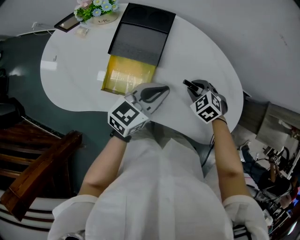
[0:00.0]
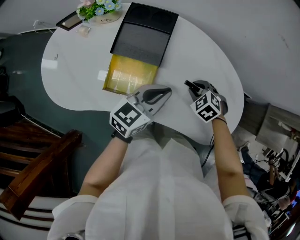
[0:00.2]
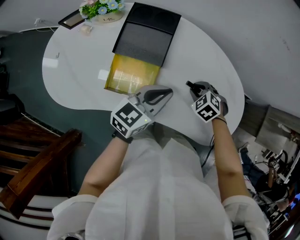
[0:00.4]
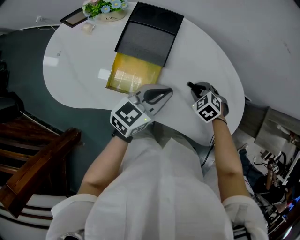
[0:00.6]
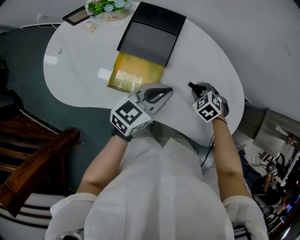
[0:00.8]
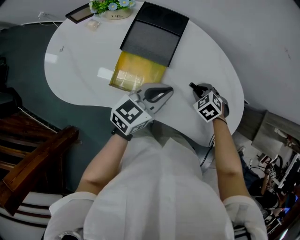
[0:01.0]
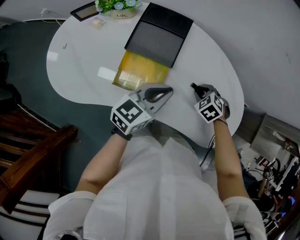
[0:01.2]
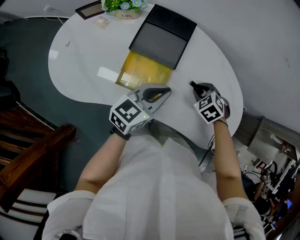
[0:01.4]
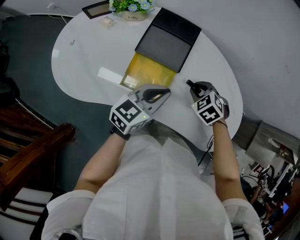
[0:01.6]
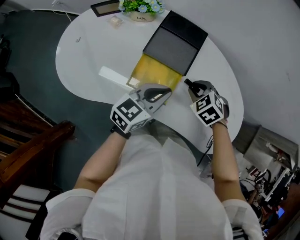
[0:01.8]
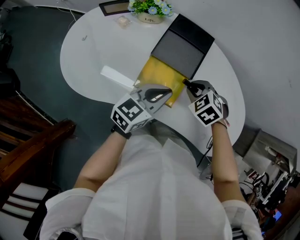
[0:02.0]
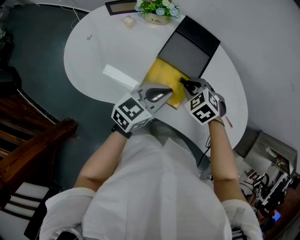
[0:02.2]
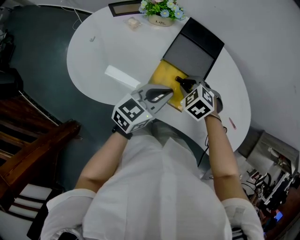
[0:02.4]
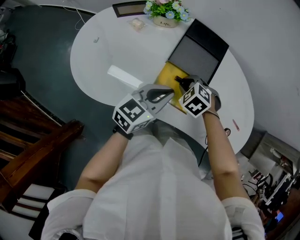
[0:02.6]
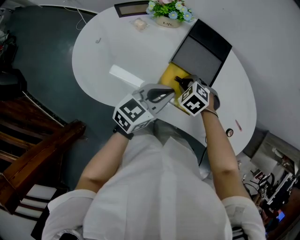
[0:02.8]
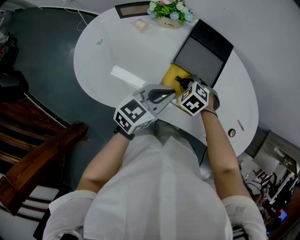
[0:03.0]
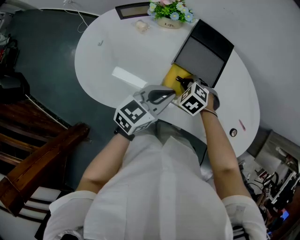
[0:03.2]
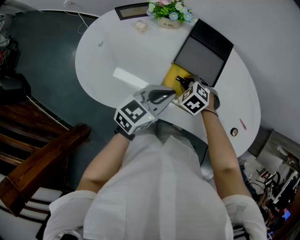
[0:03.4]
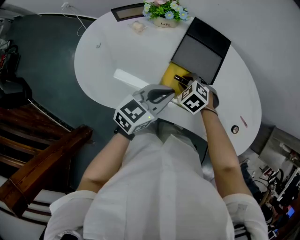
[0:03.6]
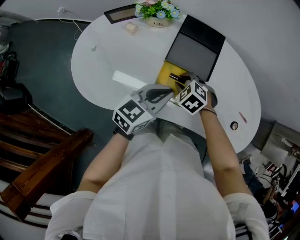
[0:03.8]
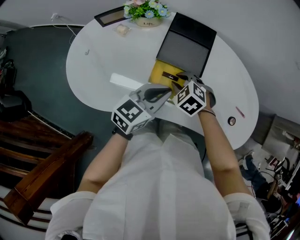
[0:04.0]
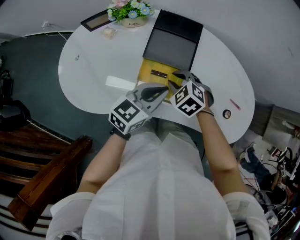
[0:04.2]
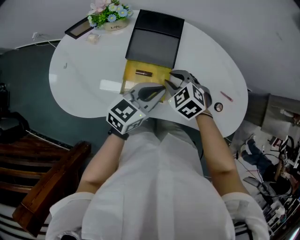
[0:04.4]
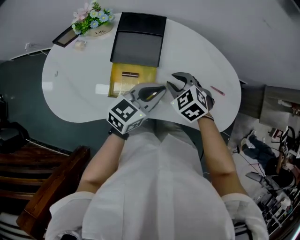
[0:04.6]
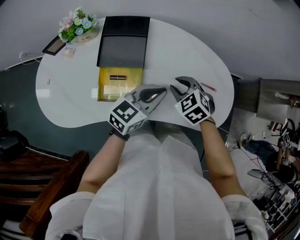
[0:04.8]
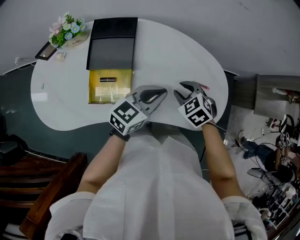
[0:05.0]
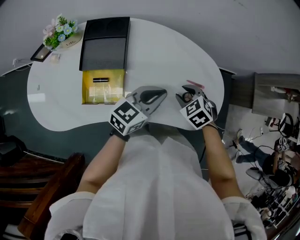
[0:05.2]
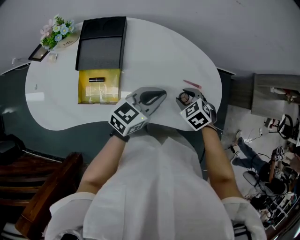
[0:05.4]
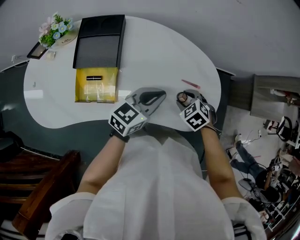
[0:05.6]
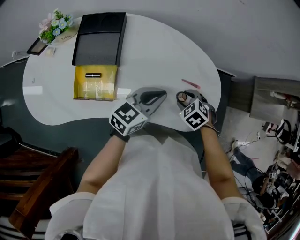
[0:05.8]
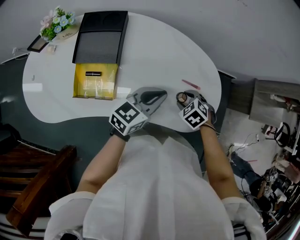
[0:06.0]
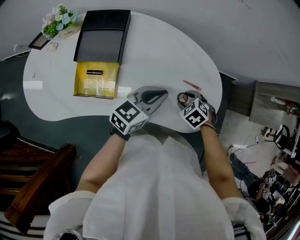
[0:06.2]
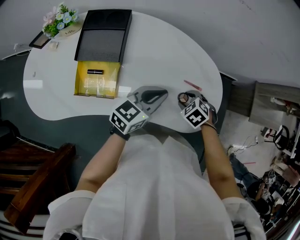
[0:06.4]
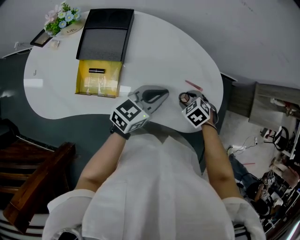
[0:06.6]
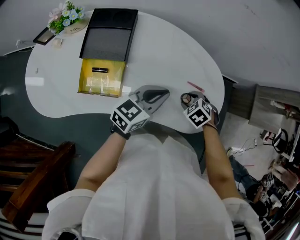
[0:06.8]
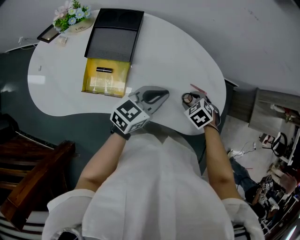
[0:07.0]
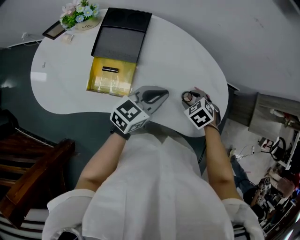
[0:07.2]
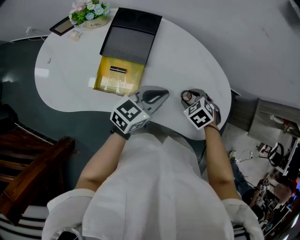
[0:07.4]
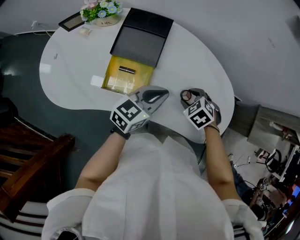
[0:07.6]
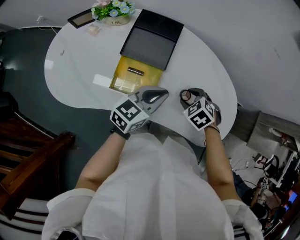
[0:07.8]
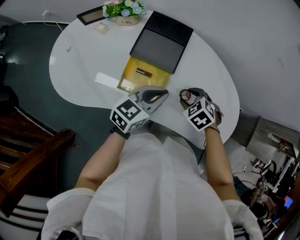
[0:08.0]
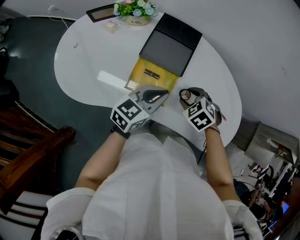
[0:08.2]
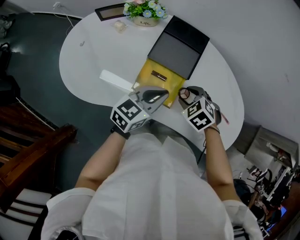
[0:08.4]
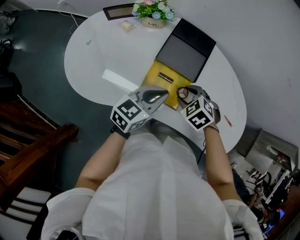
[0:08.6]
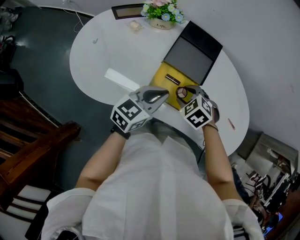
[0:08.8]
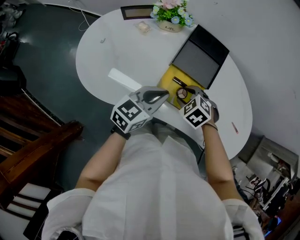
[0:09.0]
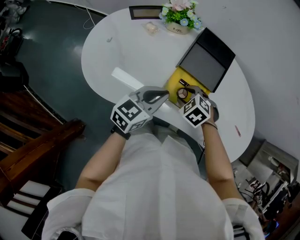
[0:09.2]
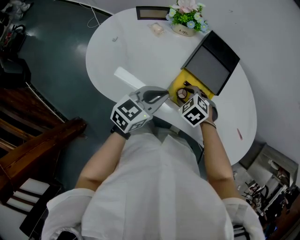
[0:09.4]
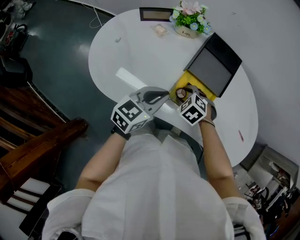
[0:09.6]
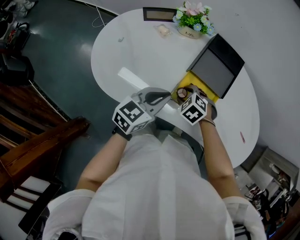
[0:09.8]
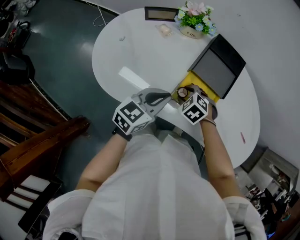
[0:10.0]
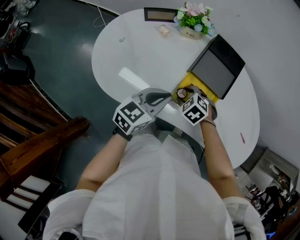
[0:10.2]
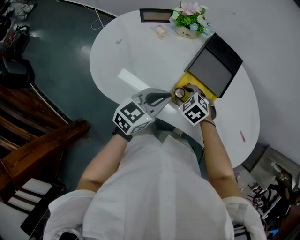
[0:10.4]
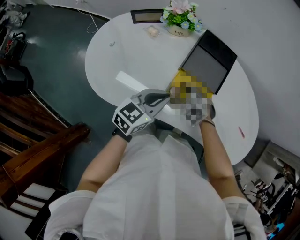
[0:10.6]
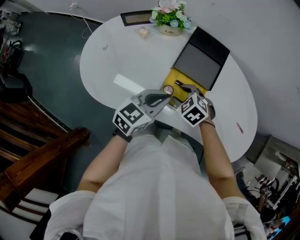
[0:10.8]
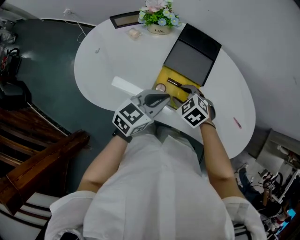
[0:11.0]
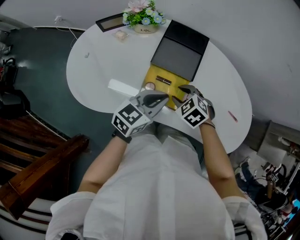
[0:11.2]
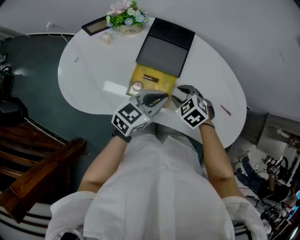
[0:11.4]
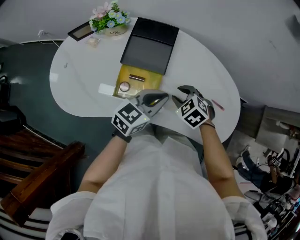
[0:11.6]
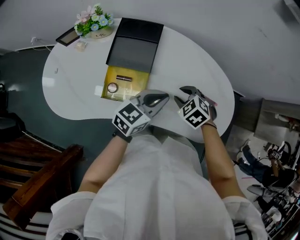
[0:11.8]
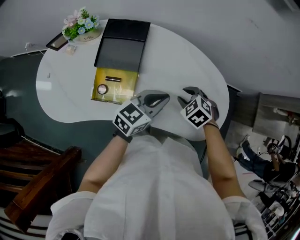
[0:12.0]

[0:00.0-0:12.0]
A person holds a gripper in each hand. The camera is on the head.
0:00.0 to 0:01.6: The two grippers go some 5 cm to the left.
0:01.6 to 0:03.0: The right gripper travels to the left by approximately 20 cm, while the left gripper heads to the left, covering some 15 cm.
0:03.0 to 0:04.4: The left gripper goes some 10 cm to the right, while the right gripper travels to the right and upward by about 15 cm, and rotates about 20 degrees.
0:04.4 to 0:06.0: The grippers both shift to the right by about 25 cm. The right gripper swivels approximately 20 degrees, and opens its fingers.
0:06.0 to 0:07.6: The right gripper shifts by approximately 15 cm. The left gripper shifts by about 15 cm.
0:07.6 to 0:09.0: Both grippers travel together to the left, some 25 cm.
0:09.0 to 0:10.4: Both grippers travel together to the left, about 5 cm.
0:10.4 to 0:12.0: The right gripper changes place by some 35 cm, and rotates approximately 20 degrees. The left gripper ends up about 35 cm from where it was, and turns by roughly 20 degrees.

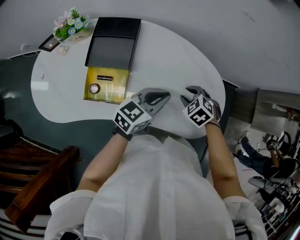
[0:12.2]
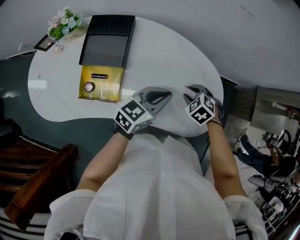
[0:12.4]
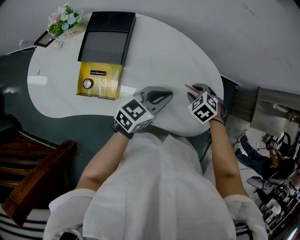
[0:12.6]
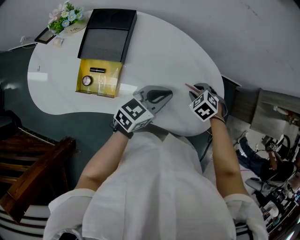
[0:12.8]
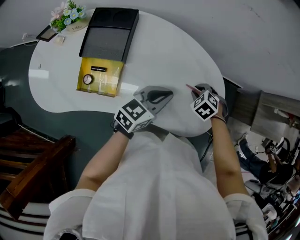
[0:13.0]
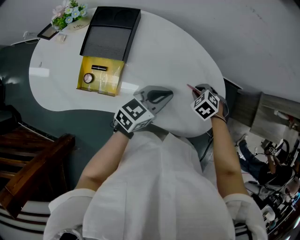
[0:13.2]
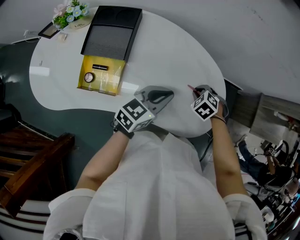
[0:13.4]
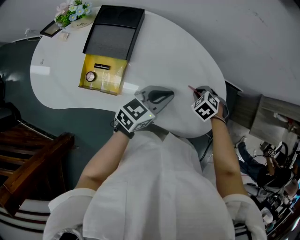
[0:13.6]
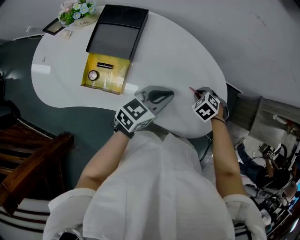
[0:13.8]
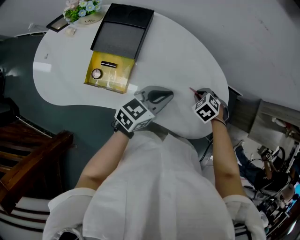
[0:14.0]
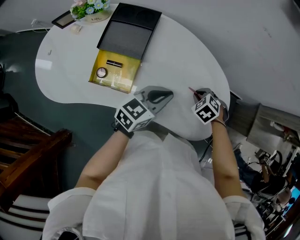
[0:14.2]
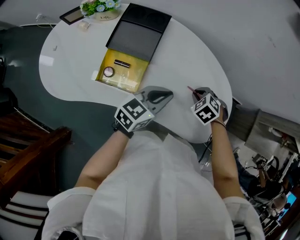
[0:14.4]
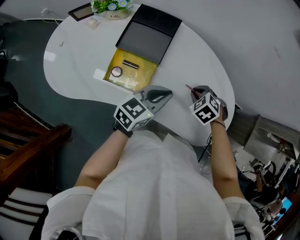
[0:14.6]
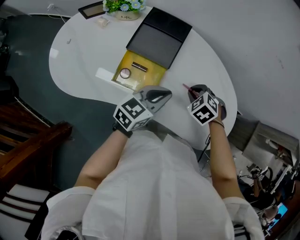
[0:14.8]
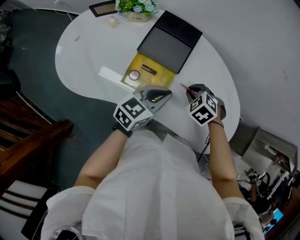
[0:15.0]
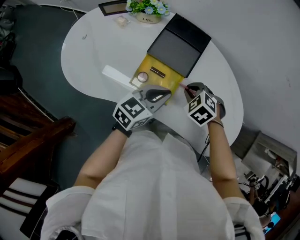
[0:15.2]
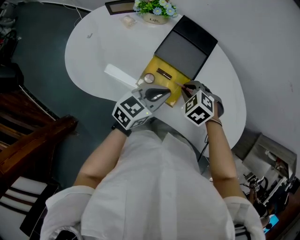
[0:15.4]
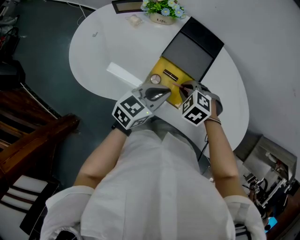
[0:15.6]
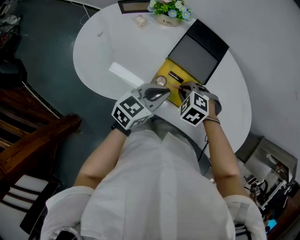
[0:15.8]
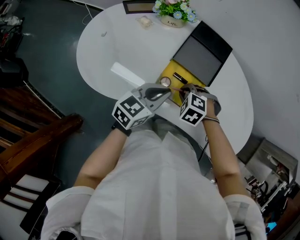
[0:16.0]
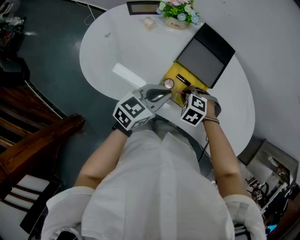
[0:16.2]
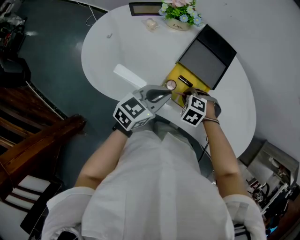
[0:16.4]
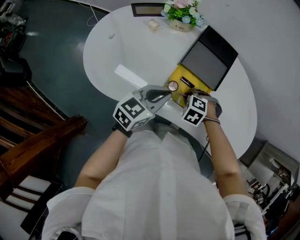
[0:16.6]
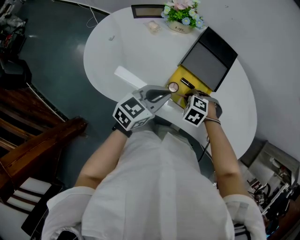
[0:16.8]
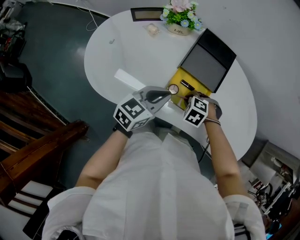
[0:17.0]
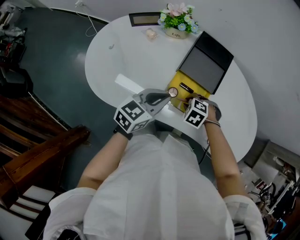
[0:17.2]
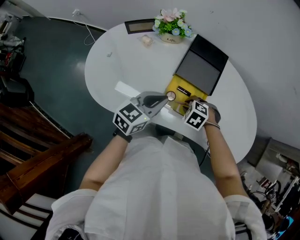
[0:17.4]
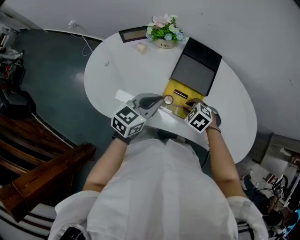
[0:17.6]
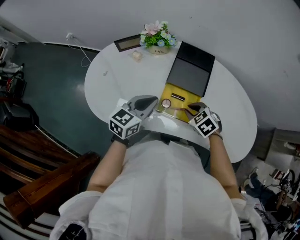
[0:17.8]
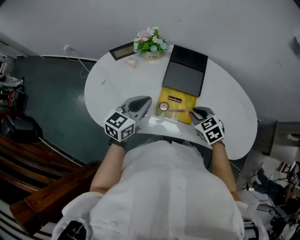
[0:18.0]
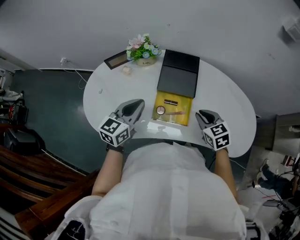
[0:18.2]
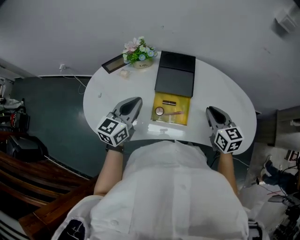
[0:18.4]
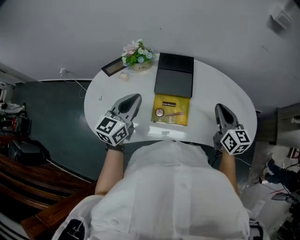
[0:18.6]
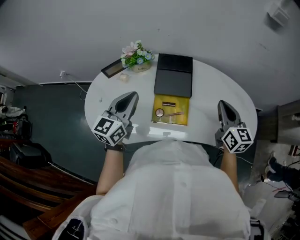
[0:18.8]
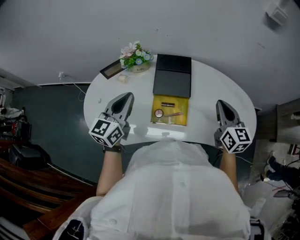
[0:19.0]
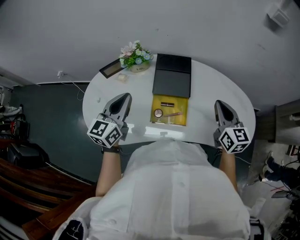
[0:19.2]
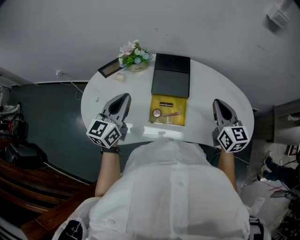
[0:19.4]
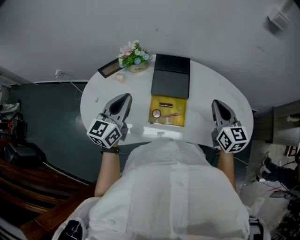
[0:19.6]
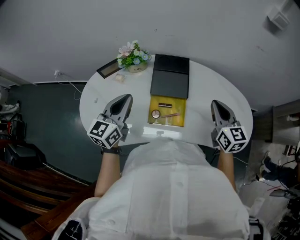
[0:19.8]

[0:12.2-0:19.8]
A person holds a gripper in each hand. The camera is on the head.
0:12.2 to 0:13.8: The right gripper ends up about 10 cm from where it was, and closes its fingers.
0:13.8 to 0:15.2: The left gripper shifts by approximately 25 cm. Meanwhile the right gripper moves approximately 30 cm, and turns by approximately 20 degrees.
0:15.2 to 0:16.8: The right gripper changes place by approximately 15 cm. Meanwhile the left gripper moves about 15 cm.
0:16.8 to 0:18.2: The left gripper is displaced upward by roughly 5 cm; the right gripper shifts approximately 15 cm upward, and tilts its fingers approximately 40 degrees upward.
0:18.2 to 0:19.8: The left gripper travels upward by roughly 5 cm. The right gripper heads upward and to the right, covering approximately 15 cm, and rotates some 30 degrees.

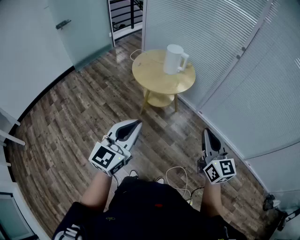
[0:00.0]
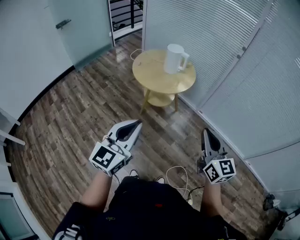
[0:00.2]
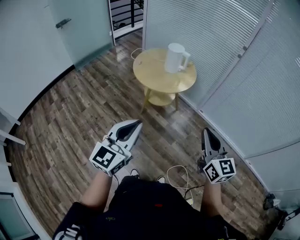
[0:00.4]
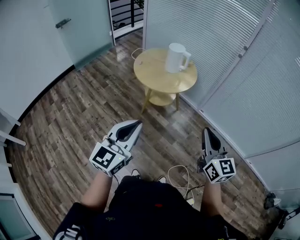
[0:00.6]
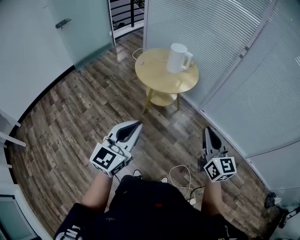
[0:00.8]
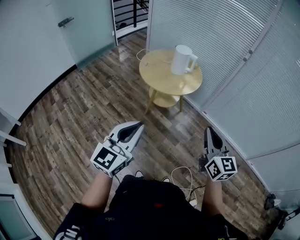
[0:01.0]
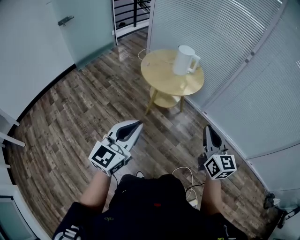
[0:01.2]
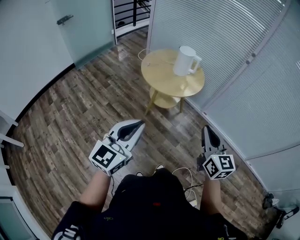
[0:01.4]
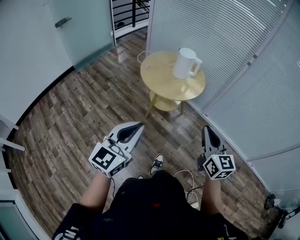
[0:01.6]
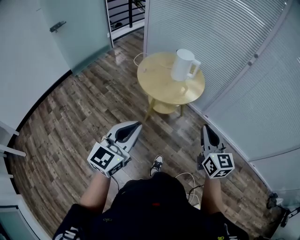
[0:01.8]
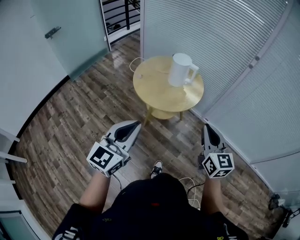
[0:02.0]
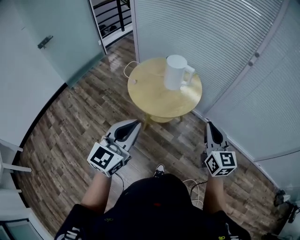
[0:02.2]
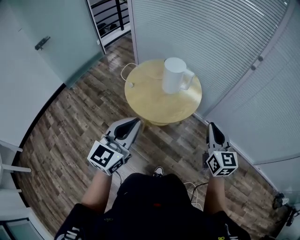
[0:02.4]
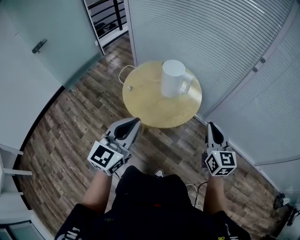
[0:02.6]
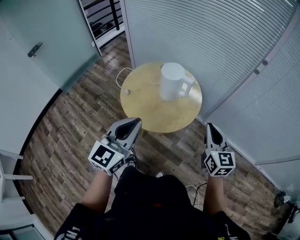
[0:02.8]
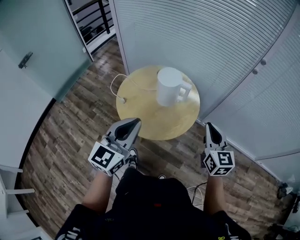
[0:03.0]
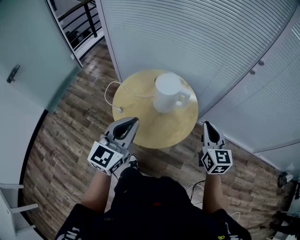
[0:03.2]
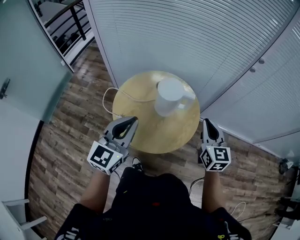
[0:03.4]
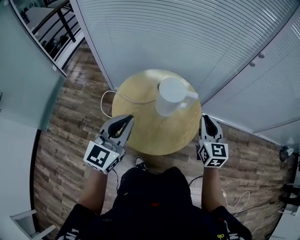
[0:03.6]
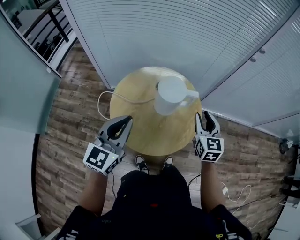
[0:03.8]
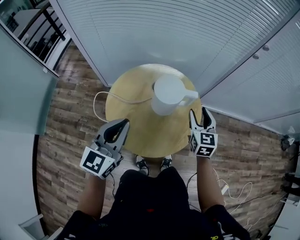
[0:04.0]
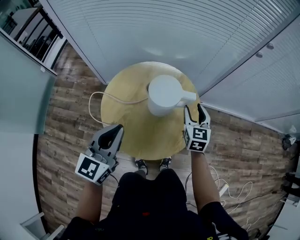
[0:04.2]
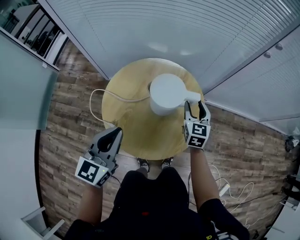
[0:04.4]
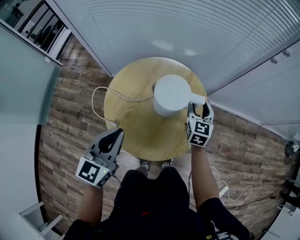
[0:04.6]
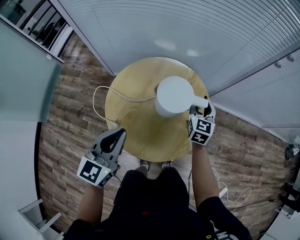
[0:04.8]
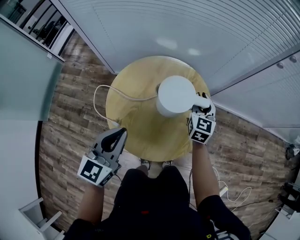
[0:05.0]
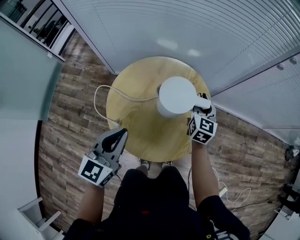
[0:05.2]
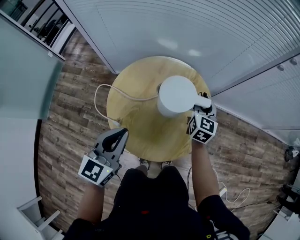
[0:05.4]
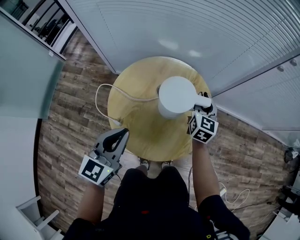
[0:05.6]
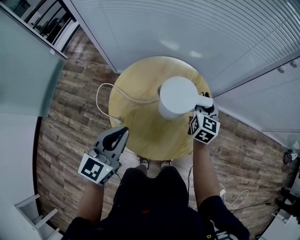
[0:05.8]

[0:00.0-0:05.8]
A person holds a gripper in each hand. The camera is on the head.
0:00.0 to 0:01.4: Both grippers move to the left, some 10 cm.
0:01.4 to 0:02.8: The grippers both shift forward by about 40 cm.
0:02.8 to 0:04.4: The right gripper ends up roughly 35 cm from where it was, changes its angle by some 30 degrees, and opens its fingers, while the left gripper changes place by roughly 35 cm, and turns by about 20 degrees.
0:04.4 to 0:05.8: The right gripper shifts by about 5 cm, and closes up.
